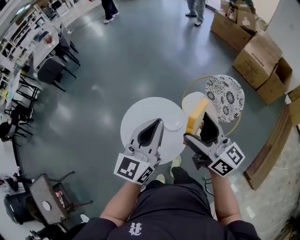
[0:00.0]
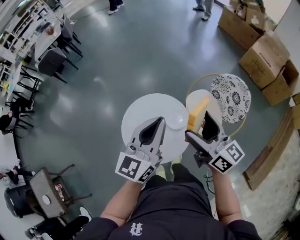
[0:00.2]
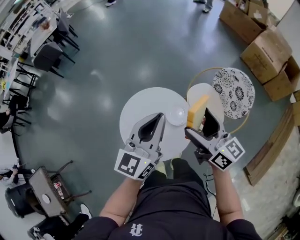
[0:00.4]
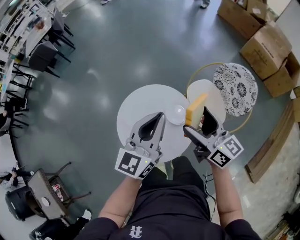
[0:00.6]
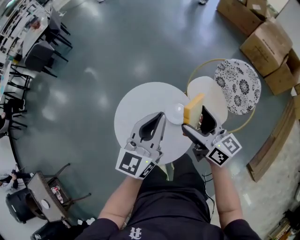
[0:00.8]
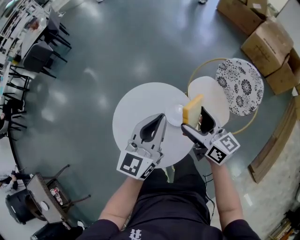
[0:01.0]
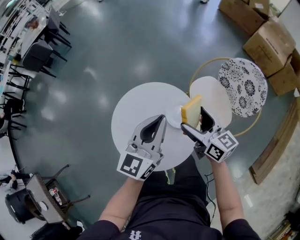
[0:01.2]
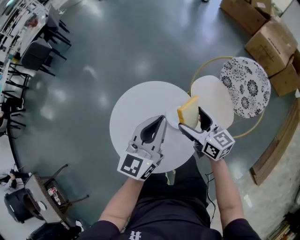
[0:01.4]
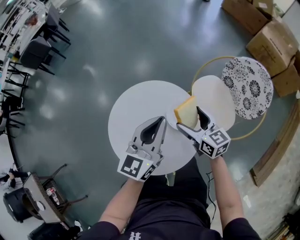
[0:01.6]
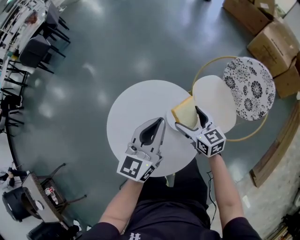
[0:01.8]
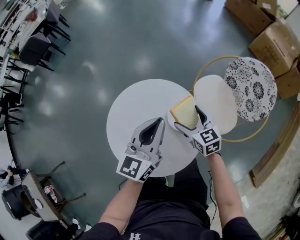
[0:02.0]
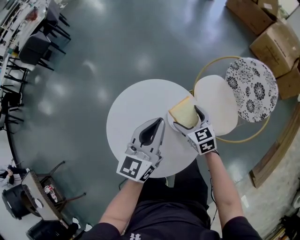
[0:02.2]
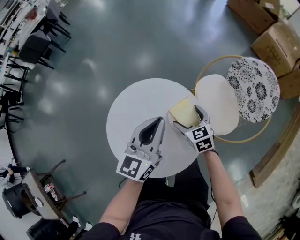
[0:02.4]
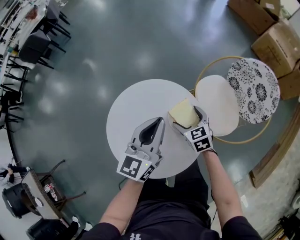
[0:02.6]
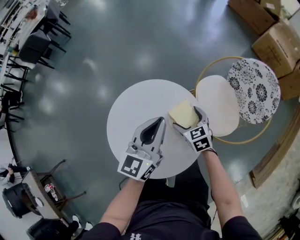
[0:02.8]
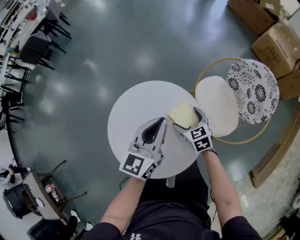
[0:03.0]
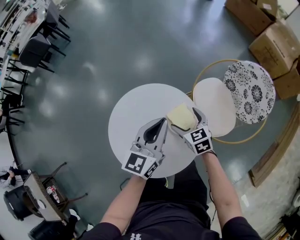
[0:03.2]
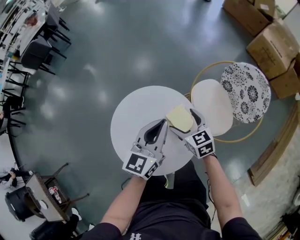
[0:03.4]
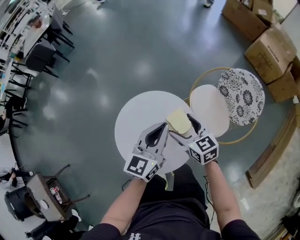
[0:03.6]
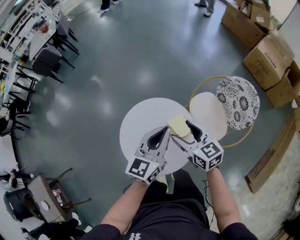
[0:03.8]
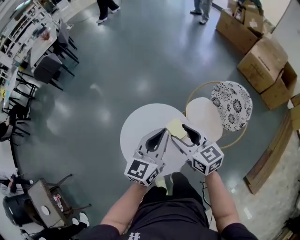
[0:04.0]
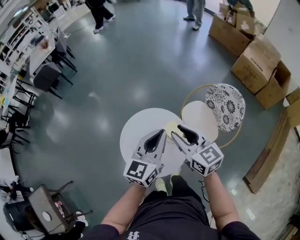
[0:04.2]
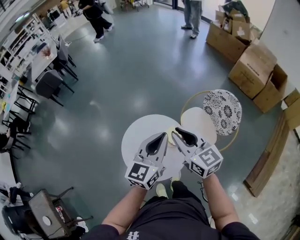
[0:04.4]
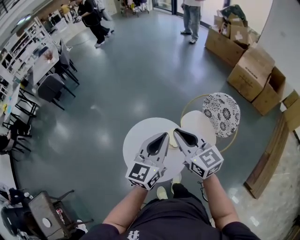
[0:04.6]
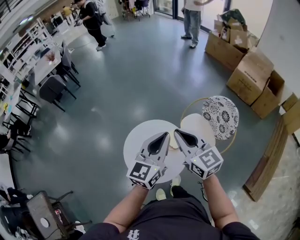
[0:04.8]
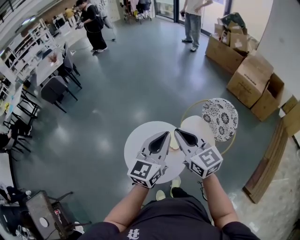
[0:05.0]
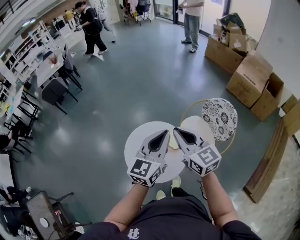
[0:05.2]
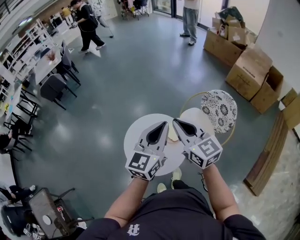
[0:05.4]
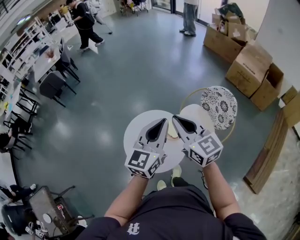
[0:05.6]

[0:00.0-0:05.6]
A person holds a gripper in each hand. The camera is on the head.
0:00.0 to 0:01.4: Both grippers travel together downward, about 30 cm. The right gripper changes its angle by some 20 degrees.
0:01.4 to 0:02.8: The right gripper travels downward by approximately 15 cm, and angles its fingers downward, by approximately 30 degrees; the left gripper goes some 5 cm downward.
0:02.8 to 0:04.2: The right gripper shifts about 40 cm upward, angles its fingers upward, by some 30 degrees, and closes. Meanwhile the left gripper goes about 20 cm upward.
0:04.2 to 0:05.6: The left gripper shifts roughly 10 cm upward and backward; the right gripper goes some 10 cm upward.

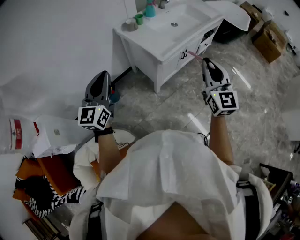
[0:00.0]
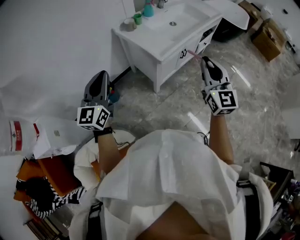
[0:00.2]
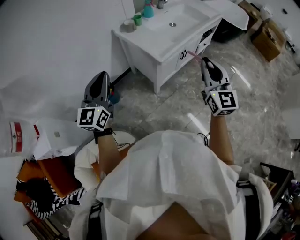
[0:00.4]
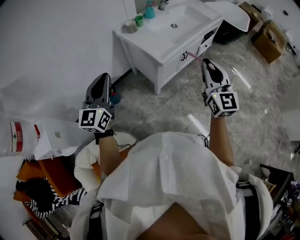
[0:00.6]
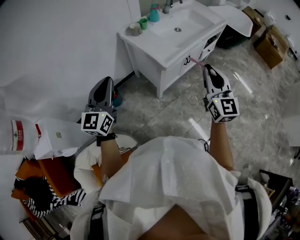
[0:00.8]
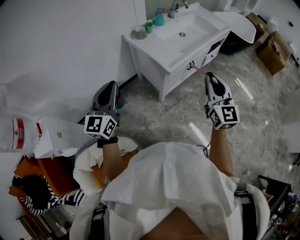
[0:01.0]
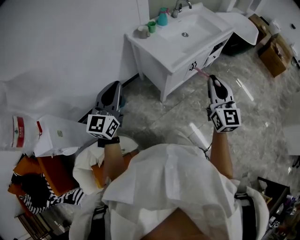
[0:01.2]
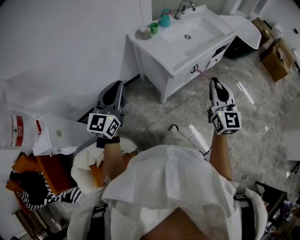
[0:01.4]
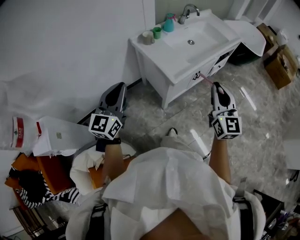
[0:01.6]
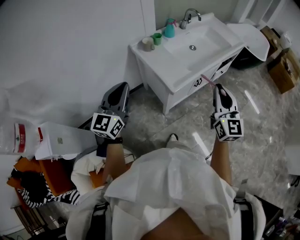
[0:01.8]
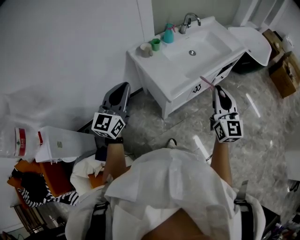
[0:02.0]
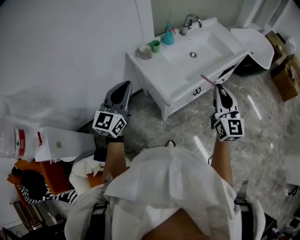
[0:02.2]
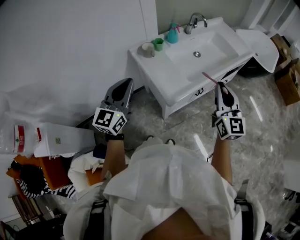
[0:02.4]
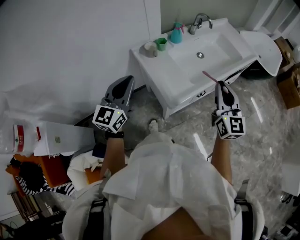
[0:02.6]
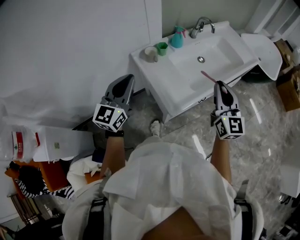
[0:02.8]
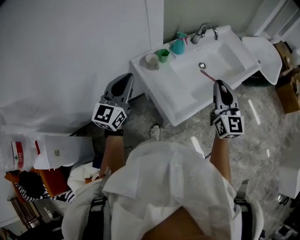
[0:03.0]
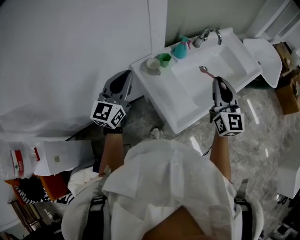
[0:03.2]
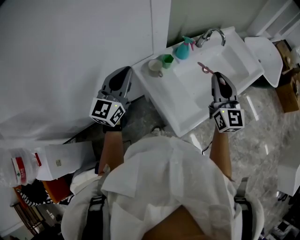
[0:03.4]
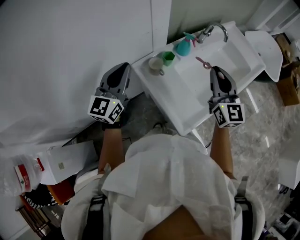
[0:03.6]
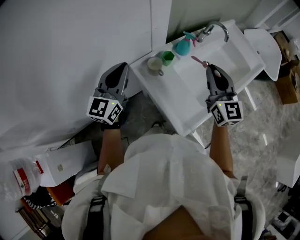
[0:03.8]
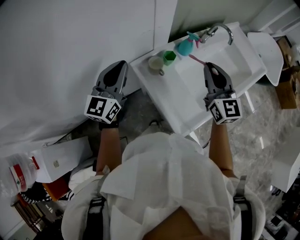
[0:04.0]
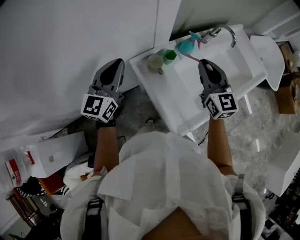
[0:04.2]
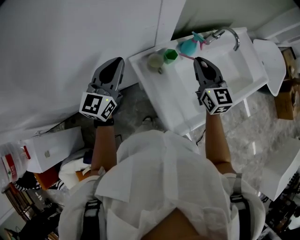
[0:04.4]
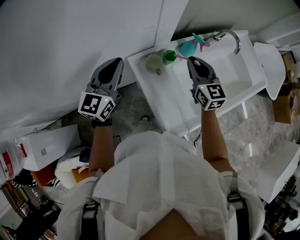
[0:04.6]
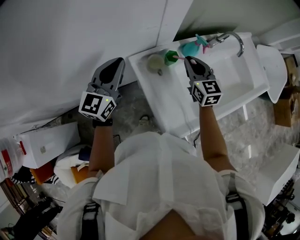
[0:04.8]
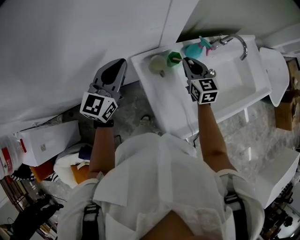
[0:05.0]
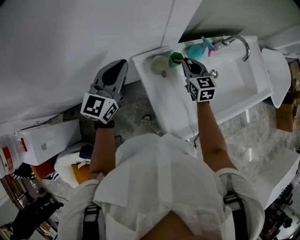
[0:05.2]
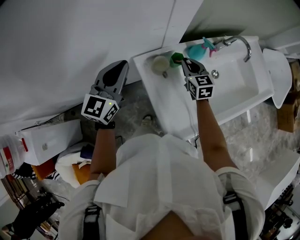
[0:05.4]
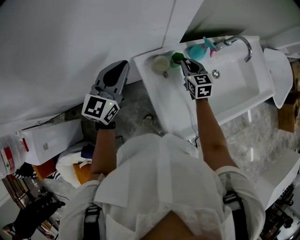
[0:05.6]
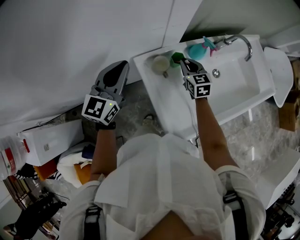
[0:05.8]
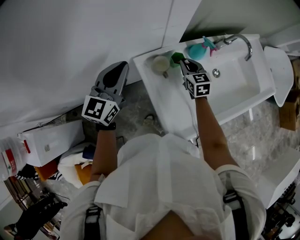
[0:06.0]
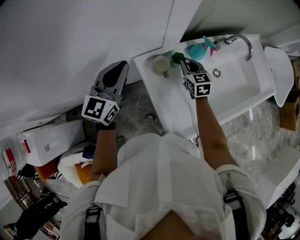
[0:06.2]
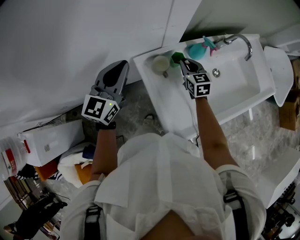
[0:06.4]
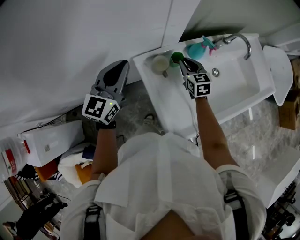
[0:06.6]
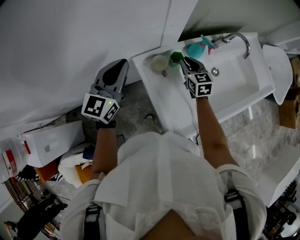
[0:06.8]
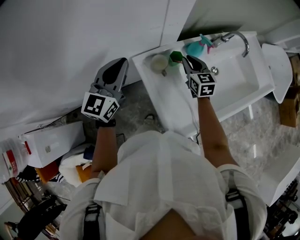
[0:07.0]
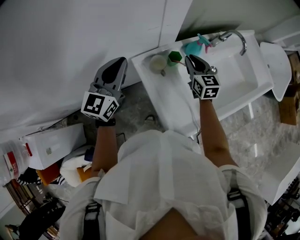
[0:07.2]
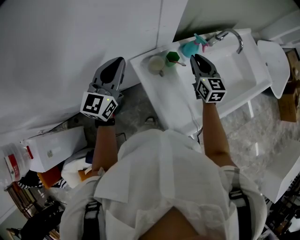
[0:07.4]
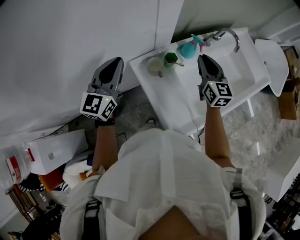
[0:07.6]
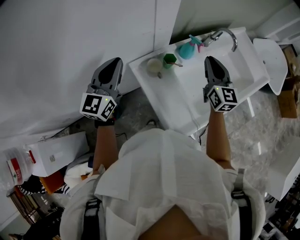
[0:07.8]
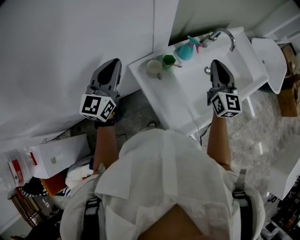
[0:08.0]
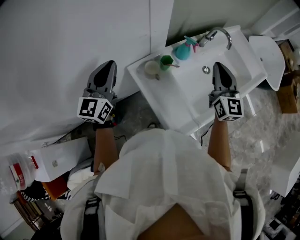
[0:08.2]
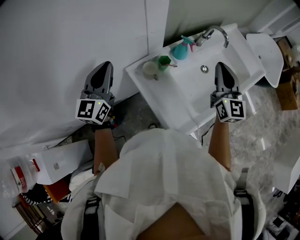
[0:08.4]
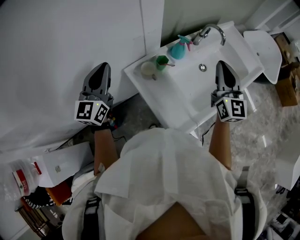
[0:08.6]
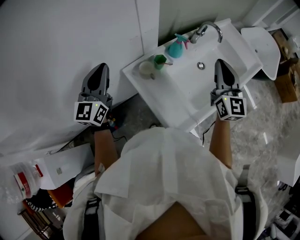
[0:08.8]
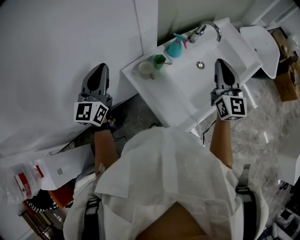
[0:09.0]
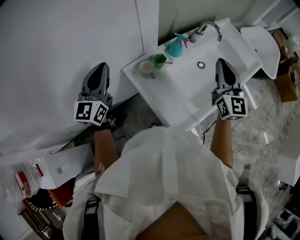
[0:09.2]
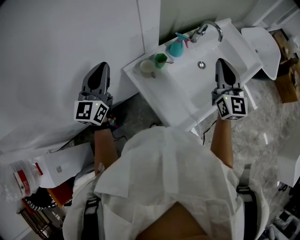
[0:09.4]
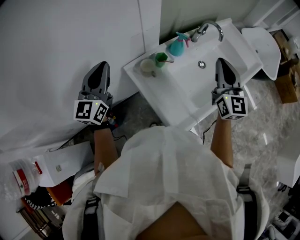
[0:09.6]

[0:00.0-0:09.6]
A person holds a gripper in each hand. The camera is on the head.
0:00.0 to 0:01.6: Both grippers travel together forward, about 5 cm.
0:01.6 to 0:03.2: Both grippers move forward, approximately 35 cm.
0:03.2 to 0:04.8: The left gripper heads forward, downward and to the left, covering roughly 15 cm. Meanwhile the right gripper is displaced forward, to the left and downward by approximately 30 cm, and swivels roughly 30 degrees.
0:04.8 to 0:06.4: The right gripper heads downward, covering about 10 cm.
0:06.4 to 0:08.0: The right gripper moves upward, to the right and backward, roughly 25 cm, and swivels about 30 degrees.
0:08.0 to 0:09.6: The right gripper shifts approximately 5 cm backward.

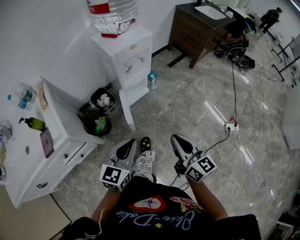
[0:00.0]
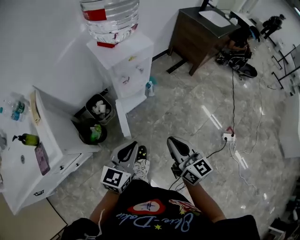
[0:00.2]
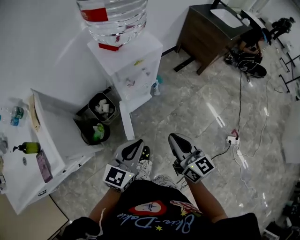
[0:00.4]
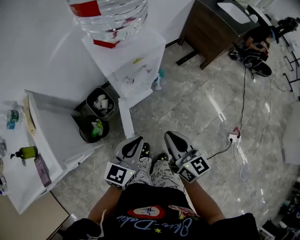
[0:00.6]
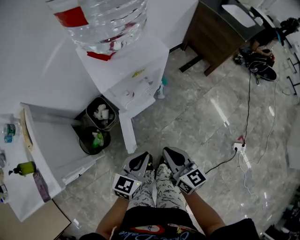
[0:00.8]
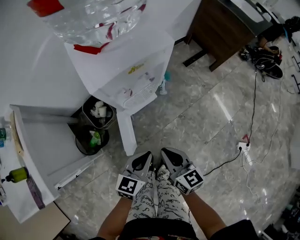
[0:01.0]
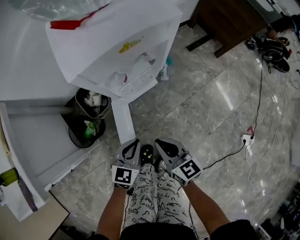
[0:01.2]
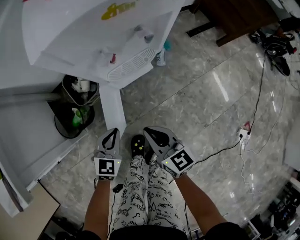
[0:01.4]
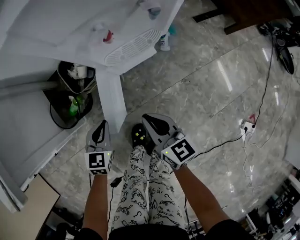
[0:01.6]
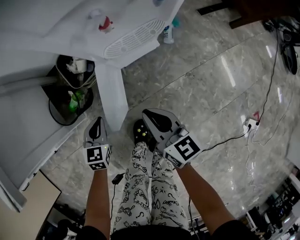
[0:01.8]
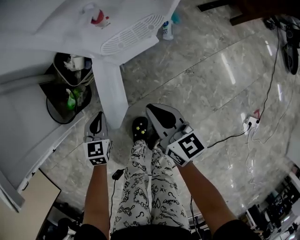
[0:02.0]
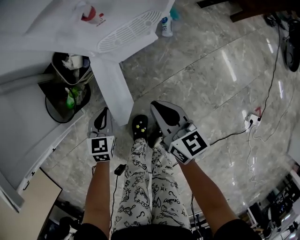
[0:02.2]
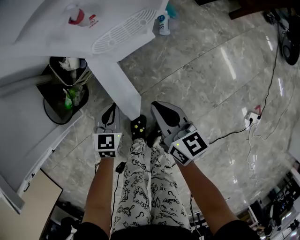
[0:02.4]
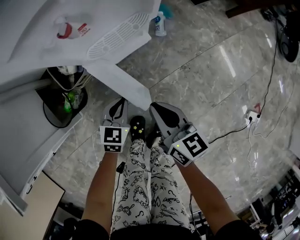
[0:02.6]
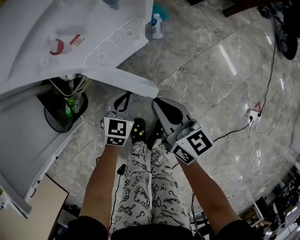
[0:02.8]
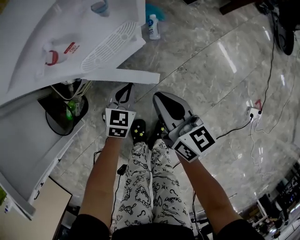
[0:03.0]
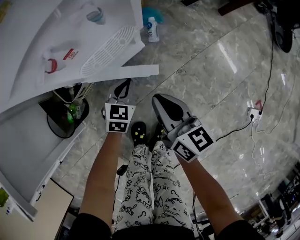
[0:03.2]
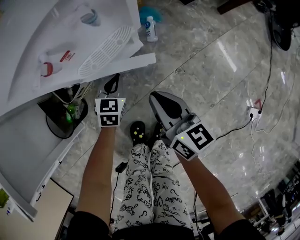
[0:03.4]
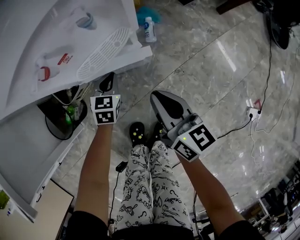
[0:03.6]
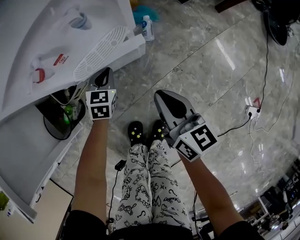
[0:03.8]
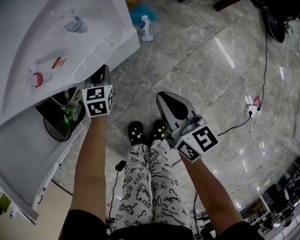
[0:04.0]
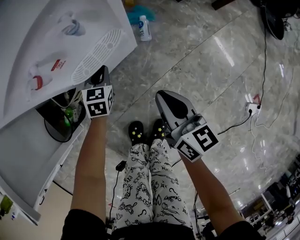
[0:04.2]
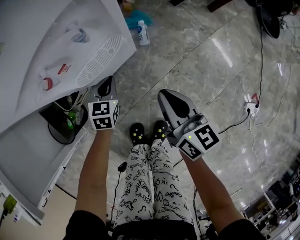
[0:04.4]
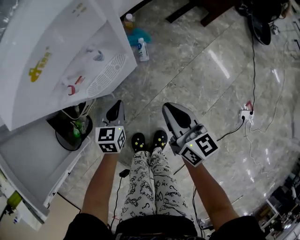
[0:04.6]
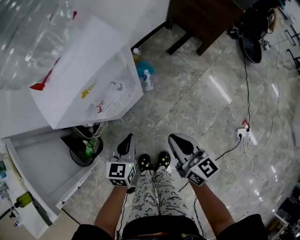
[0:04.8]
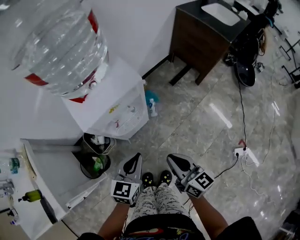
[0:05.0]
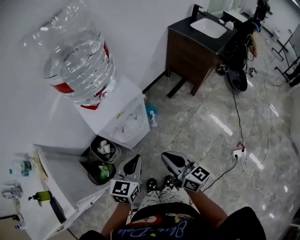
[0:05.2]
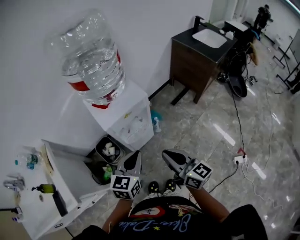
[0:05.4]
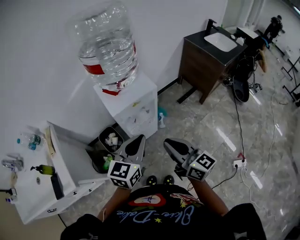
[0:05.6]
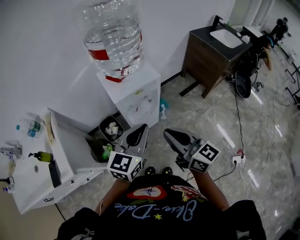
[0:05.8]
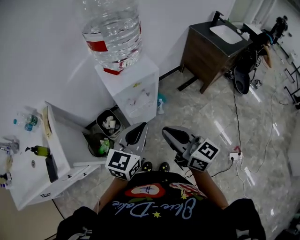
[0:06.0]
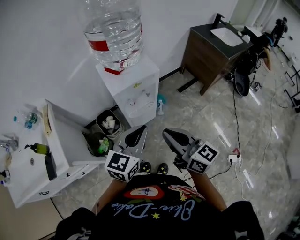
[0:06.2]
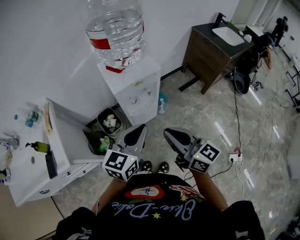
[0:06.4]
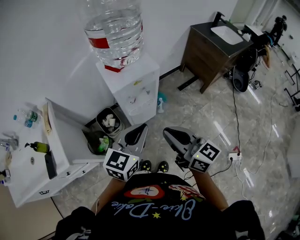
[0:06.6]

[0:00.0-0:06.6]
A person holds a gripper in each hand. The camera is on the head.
0:00.0 to 0:01.6: Both grippers travel together downward and forward, about 50 cm. The right gripper swivels some 20 degrees, while the left gripper changes its angle by some 30 degrees.
0:01.6 to 0:03.2: The right gripper is displaced to the right and forward by some 15 cm. The left gripper travels to the right and forward by approximately 25 cm.
0:03.2 to 0:05.0: Both grippers move upward, approximately 35 cm.
0:05.0 to 0:06.6: Both grippers move upward and backward, approximately 25 cm. The right gripper rotates about 20 degrees.

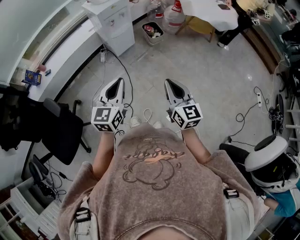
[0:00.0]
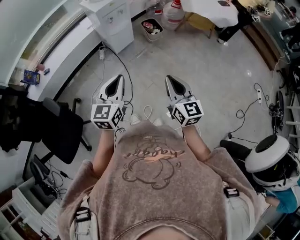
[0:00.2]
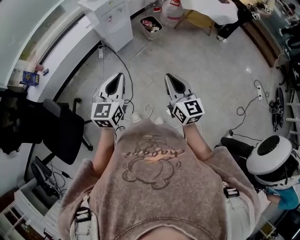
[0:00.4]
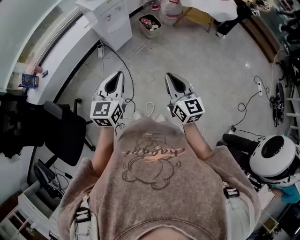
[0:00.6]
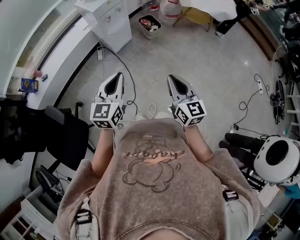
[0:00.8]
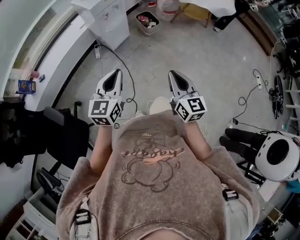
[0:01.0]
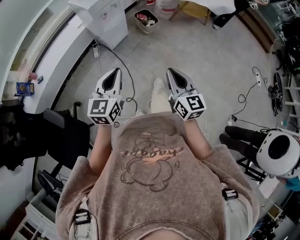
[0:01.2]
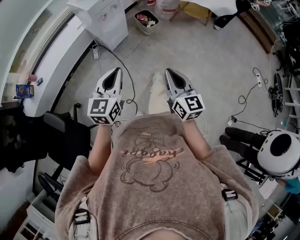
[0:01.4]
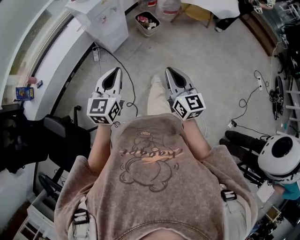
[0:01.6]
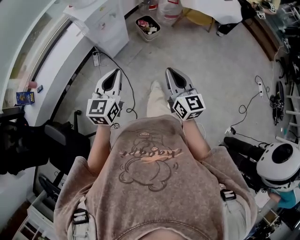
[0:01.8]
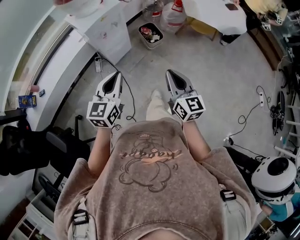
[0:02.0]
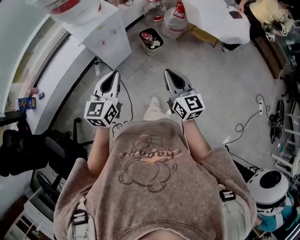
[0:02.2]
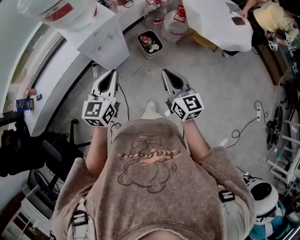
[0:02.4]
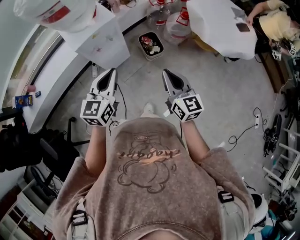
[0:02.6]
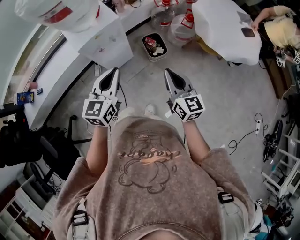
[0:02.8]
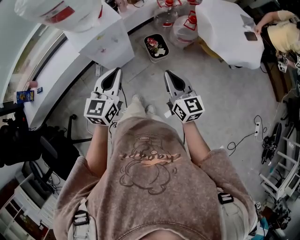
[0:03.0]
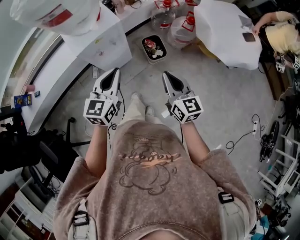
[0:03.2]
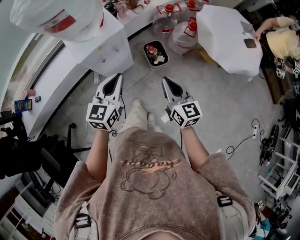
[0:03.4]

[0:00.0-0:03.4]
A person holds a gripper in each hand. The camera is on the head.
0:00.0 to 0:01.6: The left gripper heads forward, covering approximately 15 cm, while the right gripper heads forward and to the left, covering roughly 15 cm.
0:01.6 to 0:03.4: Both grippers travel together forward, some 35 cm.
